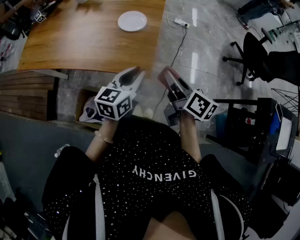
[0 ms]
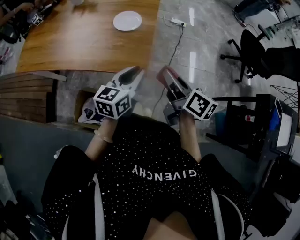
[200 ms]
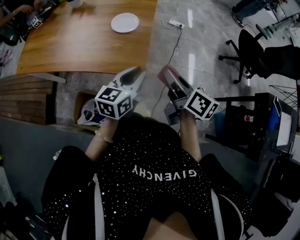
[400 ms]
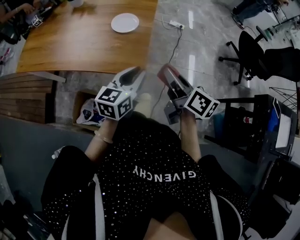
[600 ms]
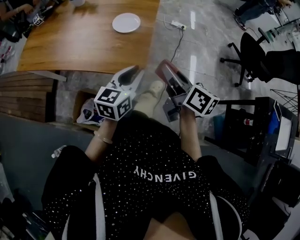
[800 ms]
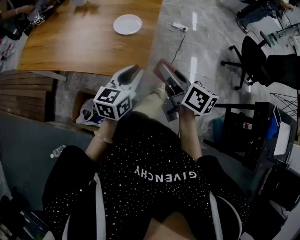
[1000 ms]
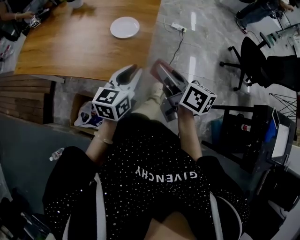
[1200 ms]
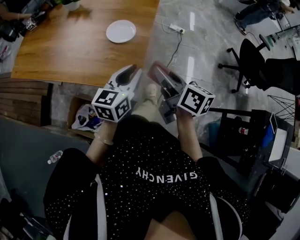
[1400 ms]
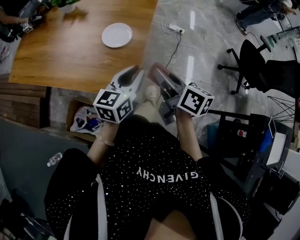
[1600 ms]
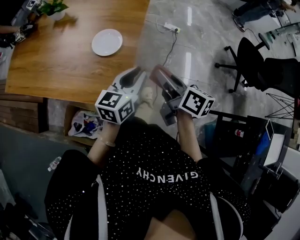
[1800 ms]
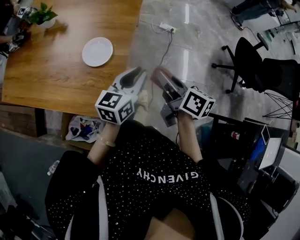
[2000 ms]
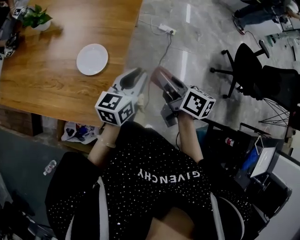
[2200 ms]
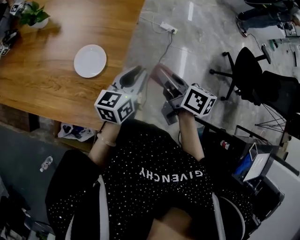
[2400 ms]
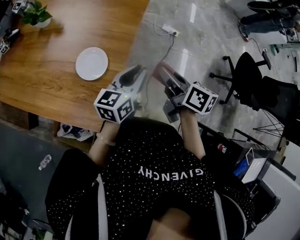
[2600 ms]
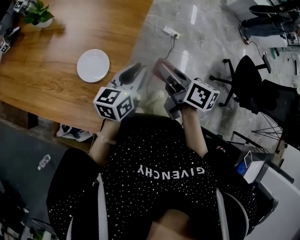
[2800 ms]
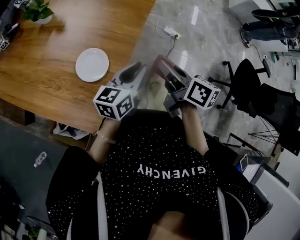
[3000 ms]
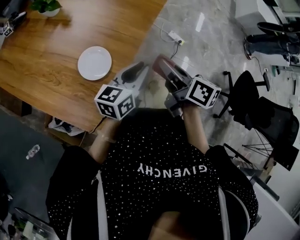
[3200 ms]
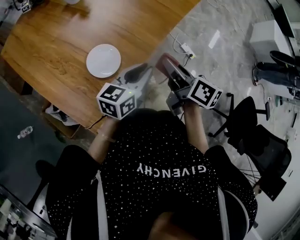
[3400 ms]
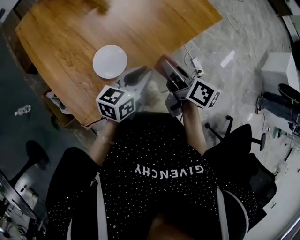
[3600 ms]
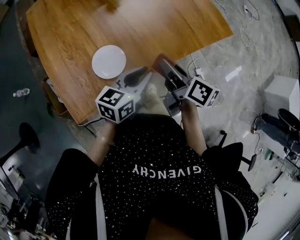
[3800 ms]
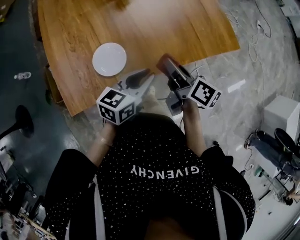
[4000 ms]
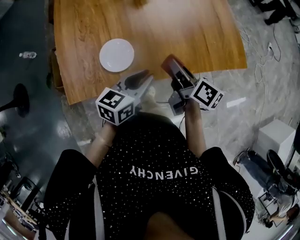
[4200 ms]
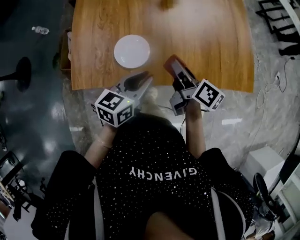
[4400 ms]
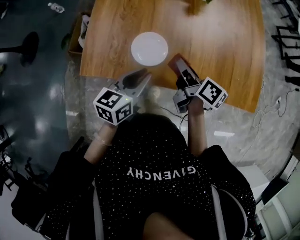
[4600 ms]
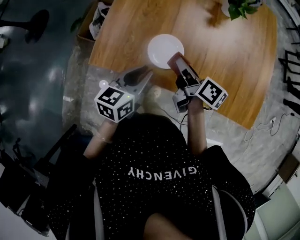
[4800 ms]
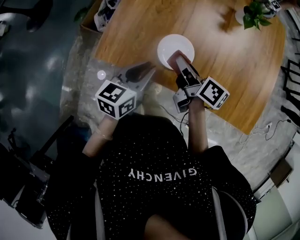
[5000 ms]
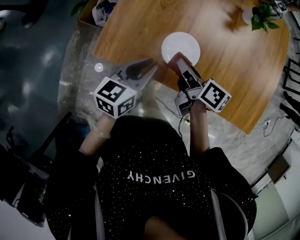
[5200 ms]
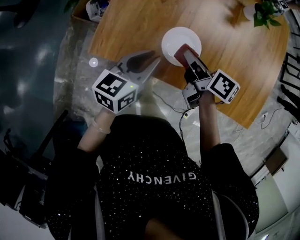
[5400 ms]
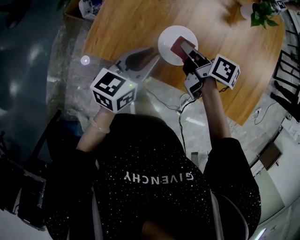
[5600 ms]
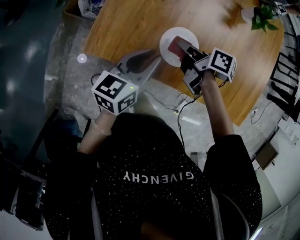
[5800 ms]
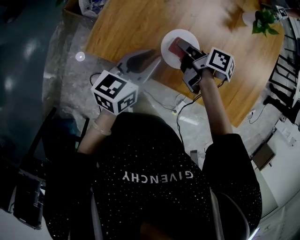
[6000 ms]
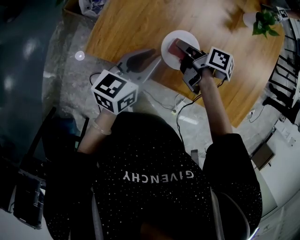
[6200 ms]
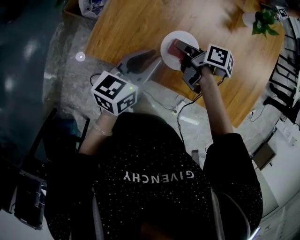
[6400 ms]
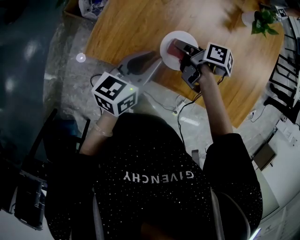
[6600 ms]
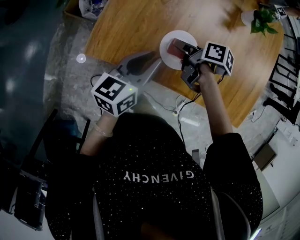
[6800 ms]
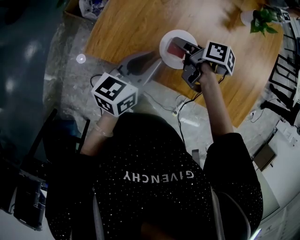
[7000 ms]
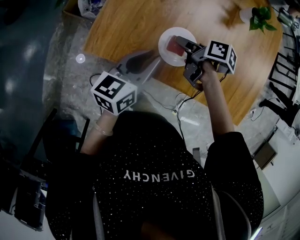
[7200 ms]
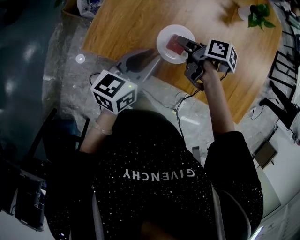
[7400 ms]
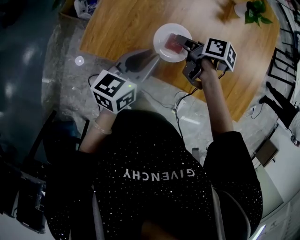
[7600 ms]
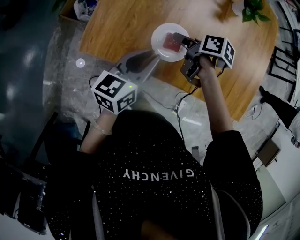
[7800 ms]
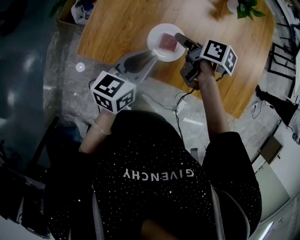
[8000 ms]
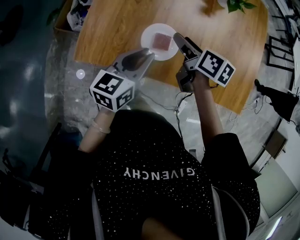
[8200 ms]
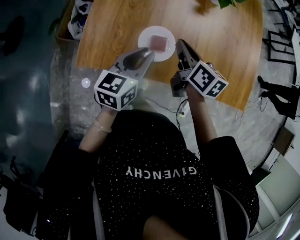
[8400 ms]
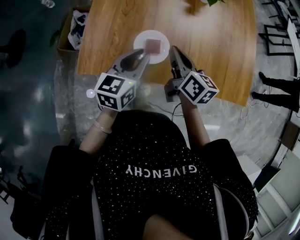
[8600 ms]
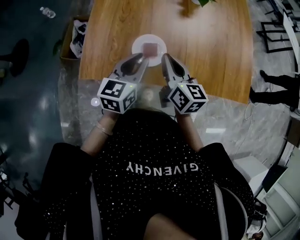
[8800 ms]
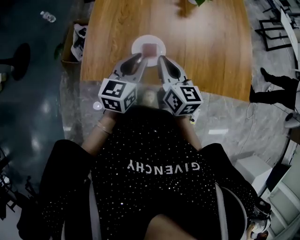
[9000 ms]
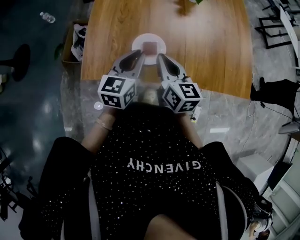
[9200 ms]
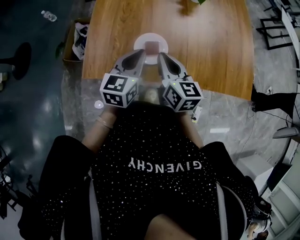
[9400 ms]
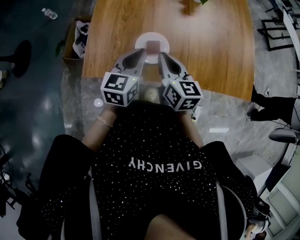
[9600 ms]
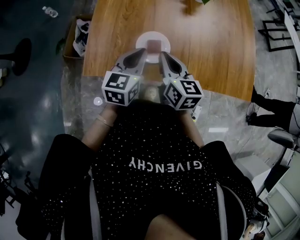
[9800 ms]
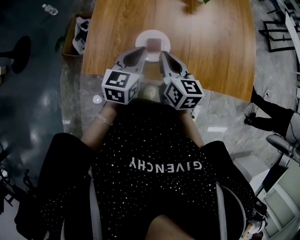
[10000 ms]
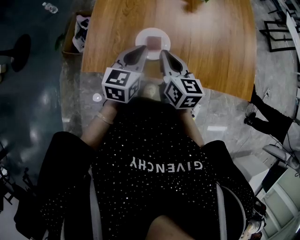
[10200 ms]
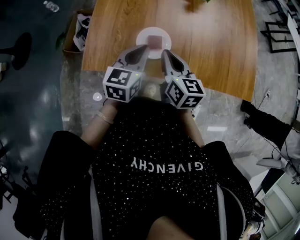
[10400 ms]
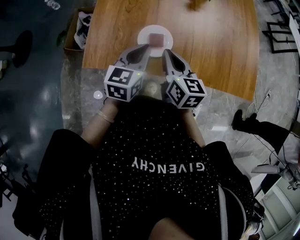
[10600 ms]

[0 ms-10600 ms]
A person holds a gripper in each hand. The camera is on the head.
0 ms to 1600 ms: The right gripper goes approximately 10 cm forward, while the left gripper moves forward and to the right, some 15 cm.
1600 ms to 3000 ms: Both grippers move forward and to the right, some 25 cm.
3000 ms to 4600 ms: The right gripper shifts by about 25 cm, and turns by roughly 70 degrees; the left gripper shifts by some 15 cm, and changes its angle by roughly 70 degrees.
4600 ms to 6000 ms: The left gripper heads to the left and forward, covering some 15 cm. The right gripper heads to the left, downward and forward, covering some 20 cm, and rotates approximately 40 degrees.
6000 ms to 7600 ms: The right gripper opens.
7600 ms to 9000 ms: The left gripper moves to the right and upward, some 10 cm, and rotates approximately 20 degrees, while the right gripper is displaced upward and backward by roughly 15 cm, angles its fingers upward, by some 40 degrees, and closes.
9000 ms to 10600 ms: There are only small adjustments of the grippers.

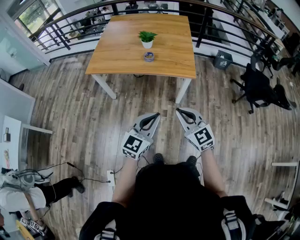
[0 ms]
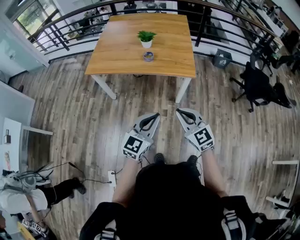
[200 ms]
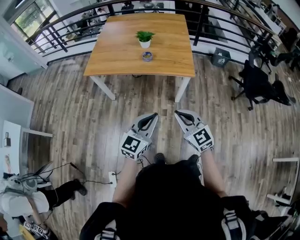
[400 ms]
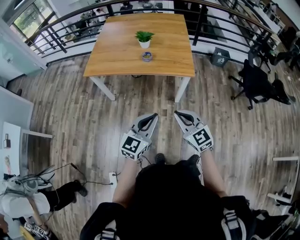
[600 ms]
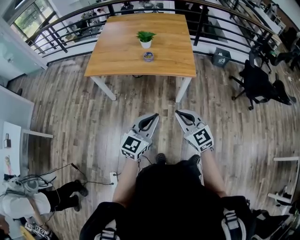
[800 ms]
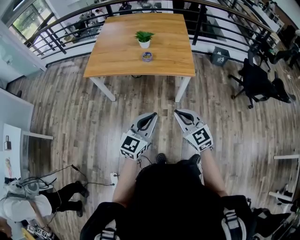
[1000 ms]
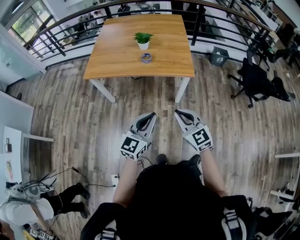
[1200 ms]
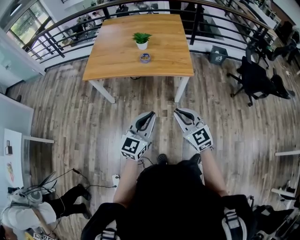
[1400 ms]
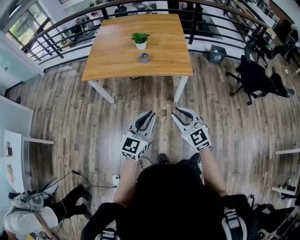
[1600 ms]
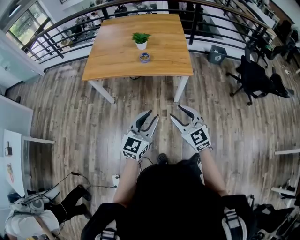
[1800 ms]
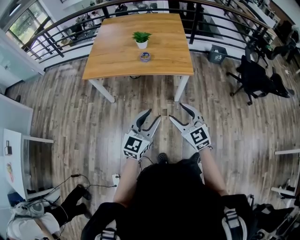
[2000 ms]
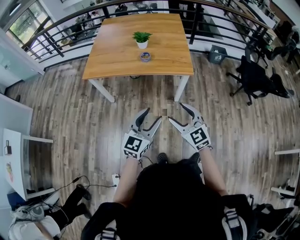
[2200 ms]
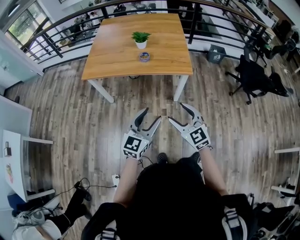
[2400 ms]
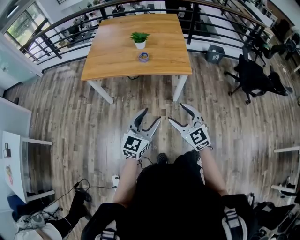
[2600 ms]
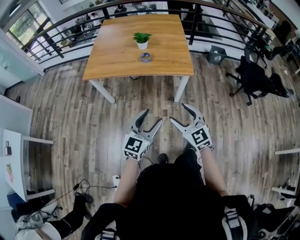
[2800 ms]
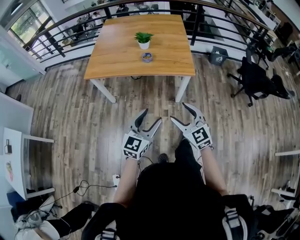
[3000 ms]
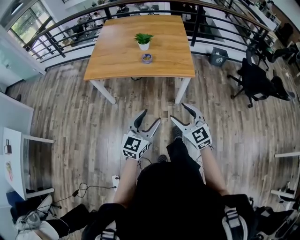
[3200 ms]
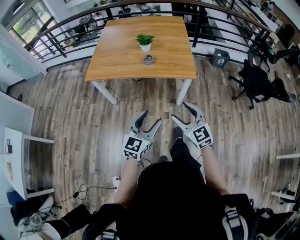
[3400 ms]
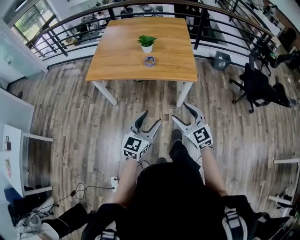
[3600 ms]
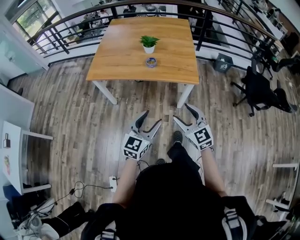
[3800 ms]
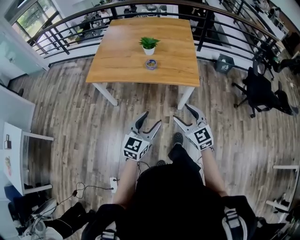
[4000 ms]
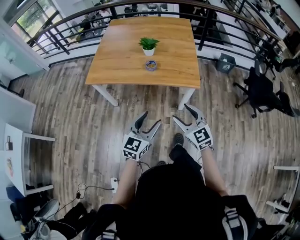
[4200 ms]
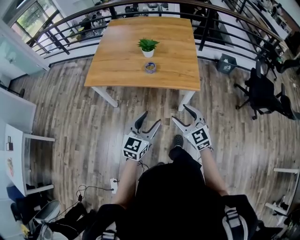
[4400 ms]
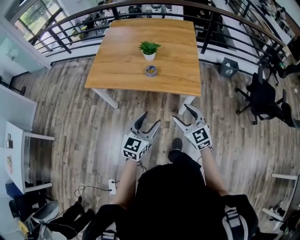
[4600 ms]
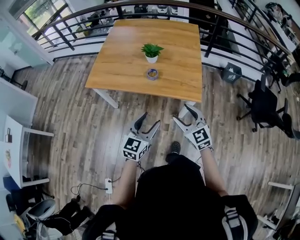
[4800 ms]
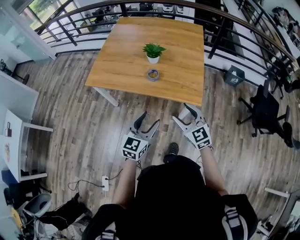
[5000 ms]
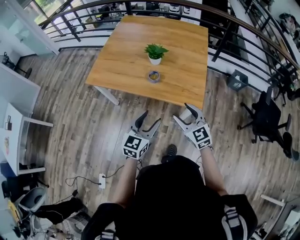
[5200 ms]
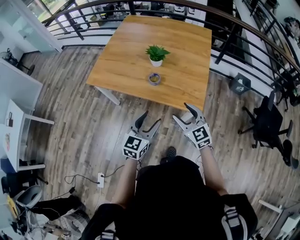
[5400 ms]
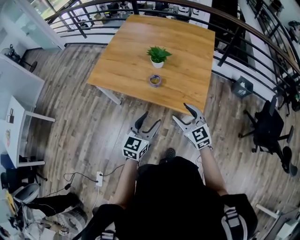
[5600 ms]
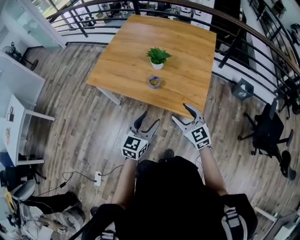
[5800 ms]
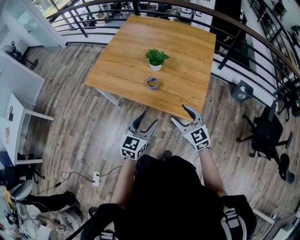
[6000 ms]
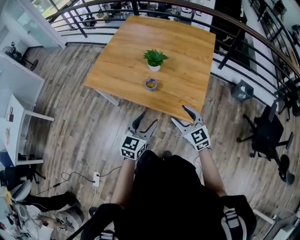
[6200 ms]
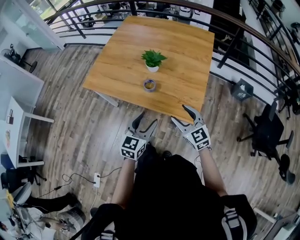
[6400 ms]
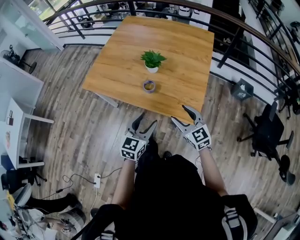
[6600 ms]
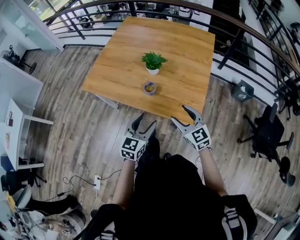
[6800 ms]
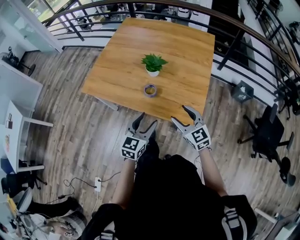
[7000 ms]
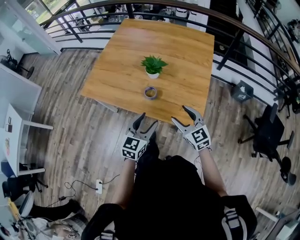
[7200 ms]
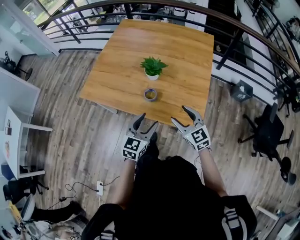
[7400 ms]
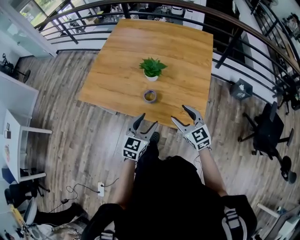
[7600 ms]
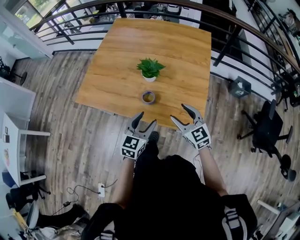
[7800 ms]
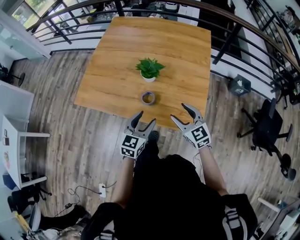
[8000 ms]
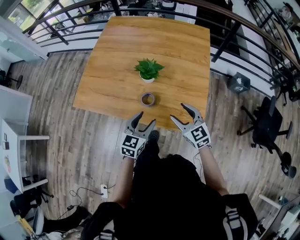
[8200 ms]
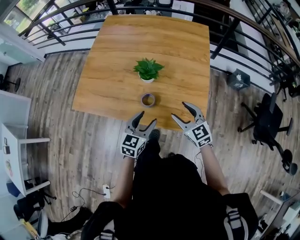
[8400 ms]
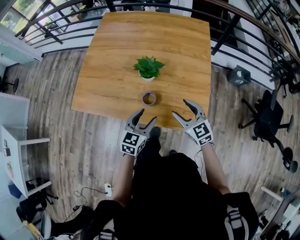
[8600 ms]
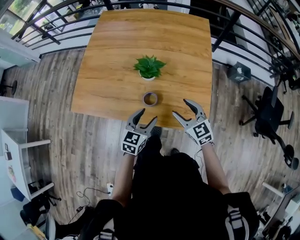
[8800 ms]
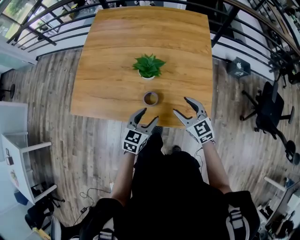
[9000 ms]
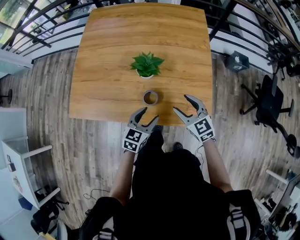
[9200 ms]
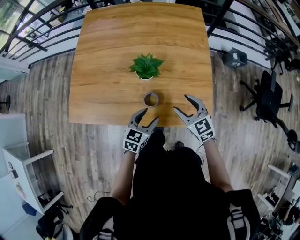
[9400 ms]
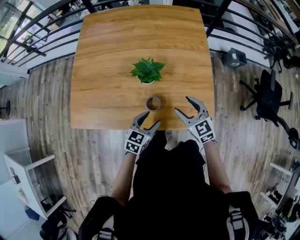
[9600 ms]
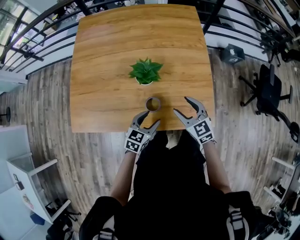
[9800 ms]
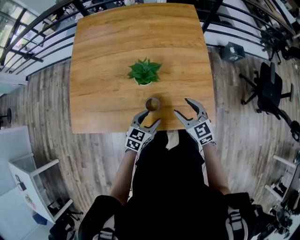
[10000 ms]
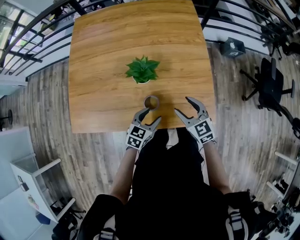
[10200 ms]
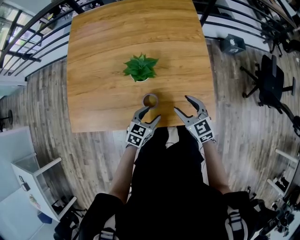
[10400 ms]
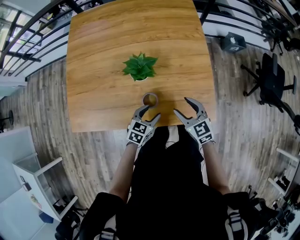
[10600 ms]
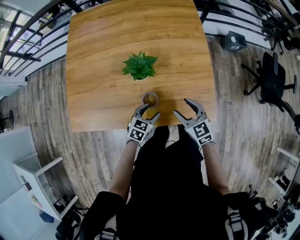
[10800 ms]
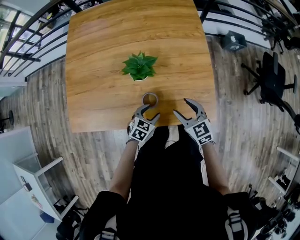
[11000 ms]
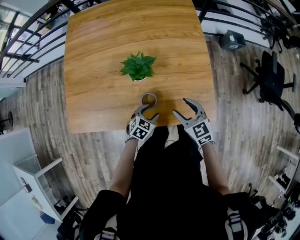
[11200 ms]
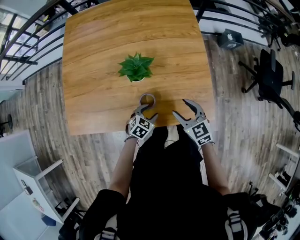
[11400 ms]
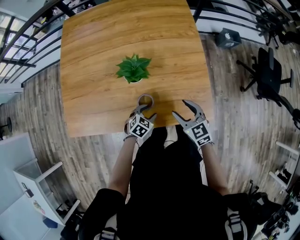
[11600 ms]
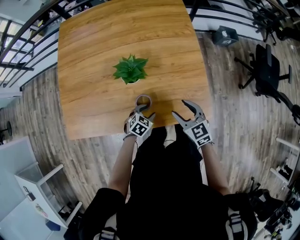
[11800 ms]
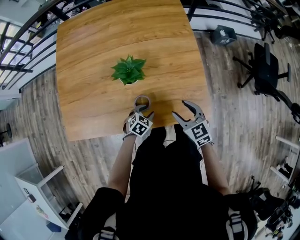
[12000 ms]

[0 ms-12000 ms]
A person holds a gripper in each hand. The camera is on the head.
0 ms to 1600 ms: The grippers stay close to where they were, moving slightly.
1600 ms to 3000 ms: The right gripper opens its fingers. Meanwhile the left gripper opens its fingers.
3000 ms to 4400 ms: Both grippers move forward, roughly 10 cm.
4400 ms to 6000 ms: The grippers both shift forward and to the right by some 20 cm.
6000 ms to 7600 ms: The grippers both shift forward by some 10 cm.
7600 ms to 9000 ms: The left gripper is displaced forward and downward by approximately 10 cm, while the right gripper shifts approximately 10 cm forward.
9000 ms to 10400 ms: The left gripper travels downward by approximately 10 cm.
10400 ms to 12000 ms: The left gripper travels downward by some 10 cm, and turns by some 30 degrees.

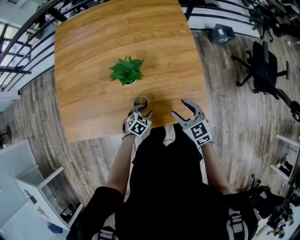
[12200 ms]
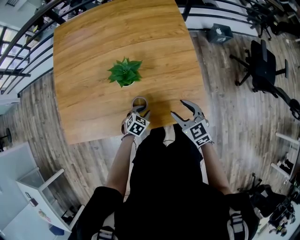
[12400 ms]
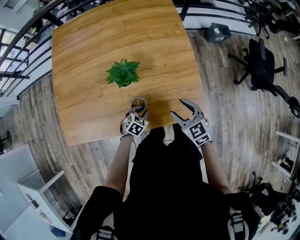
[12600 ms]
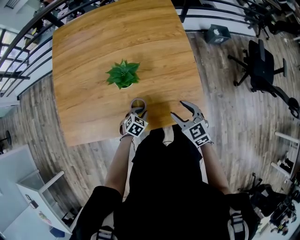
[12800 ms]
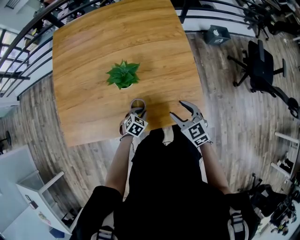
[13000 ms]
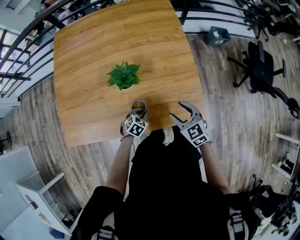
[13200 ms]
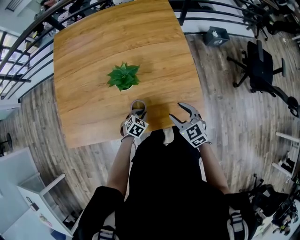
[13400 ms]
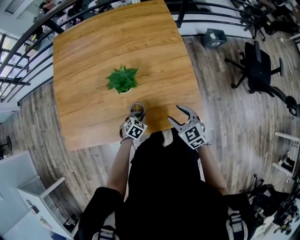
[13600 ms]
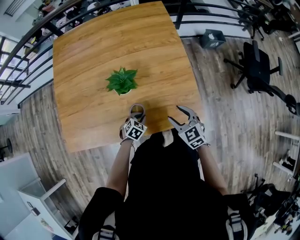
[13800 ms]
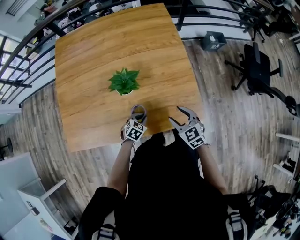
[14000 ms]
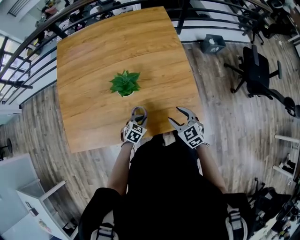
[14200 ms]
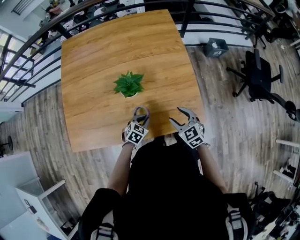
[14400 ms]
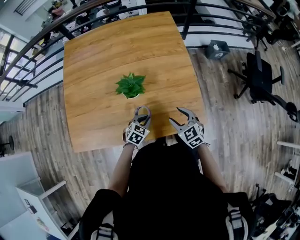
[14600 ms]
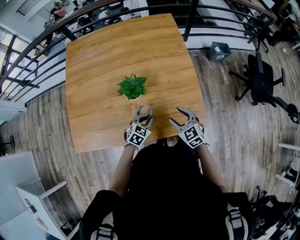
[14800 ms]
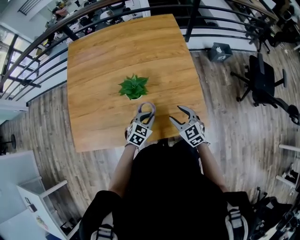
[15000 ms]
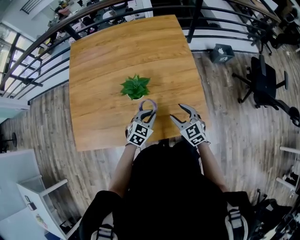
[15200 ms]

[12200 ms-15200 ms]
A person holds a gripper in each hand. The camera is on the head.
12200 ms to 13800 ms: The left gripper closes up.
13800 ms to 15200 ms: The right gripper shifts by about 5 cm; the left gripper heads upward, covering roughly 15 cm, and swivels some 20 degrees.
